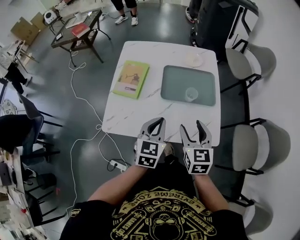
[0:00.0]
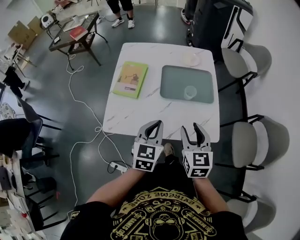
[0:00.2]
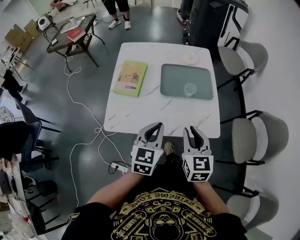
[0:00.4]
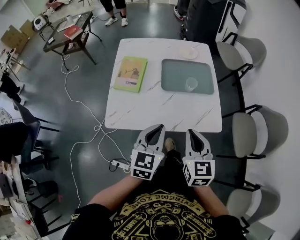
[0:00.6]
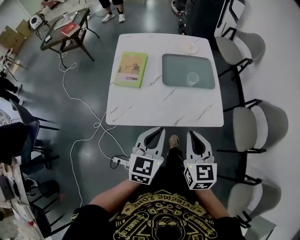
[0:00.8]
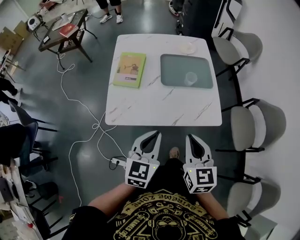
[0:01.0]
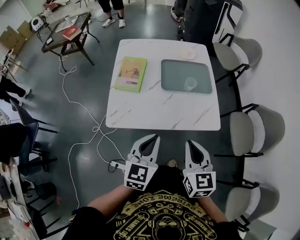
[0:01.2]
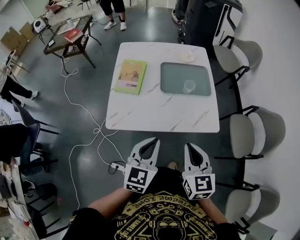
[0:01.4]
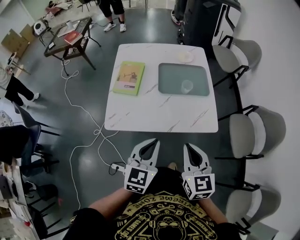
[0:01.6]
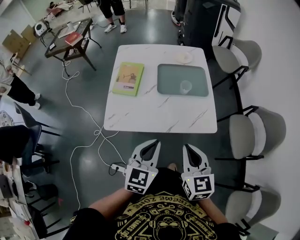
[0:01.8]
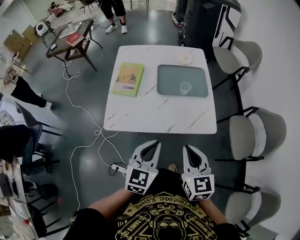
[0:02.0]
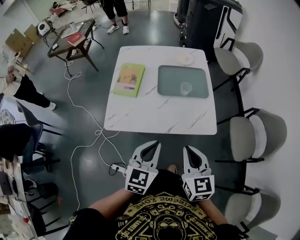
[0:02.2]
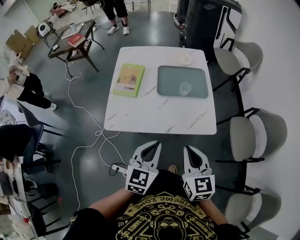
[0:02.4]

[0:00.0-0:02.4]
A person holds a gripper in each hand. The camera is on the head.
0.0 to 1.2 s: The two grippers go approximately 15 cm backward. The right gripper closes up.
1.2 to 2.4 s: The left gripper shifts about 5 cm to the right.

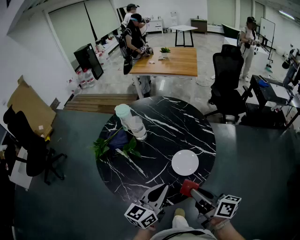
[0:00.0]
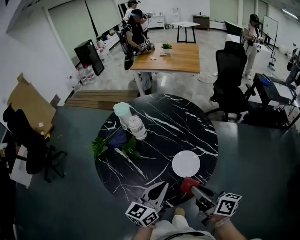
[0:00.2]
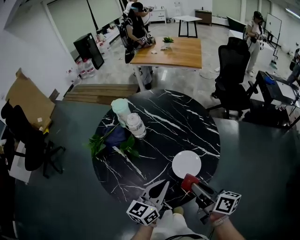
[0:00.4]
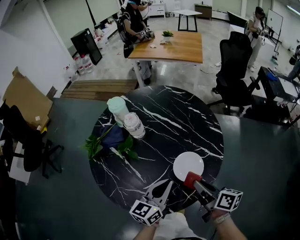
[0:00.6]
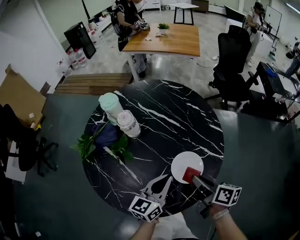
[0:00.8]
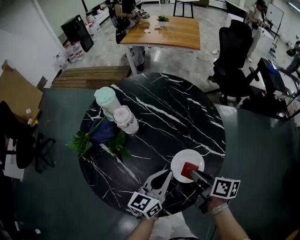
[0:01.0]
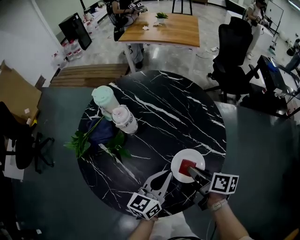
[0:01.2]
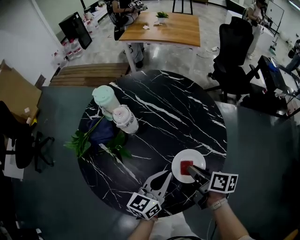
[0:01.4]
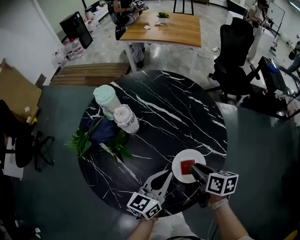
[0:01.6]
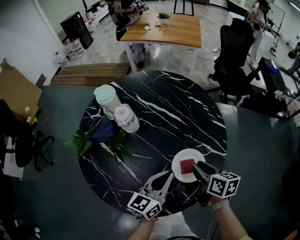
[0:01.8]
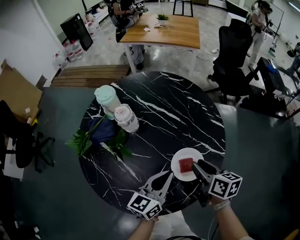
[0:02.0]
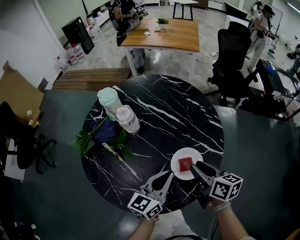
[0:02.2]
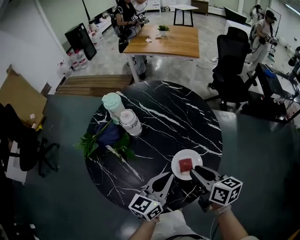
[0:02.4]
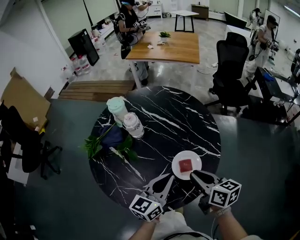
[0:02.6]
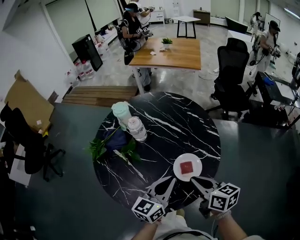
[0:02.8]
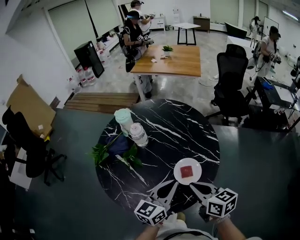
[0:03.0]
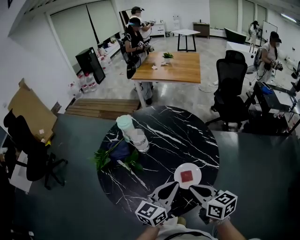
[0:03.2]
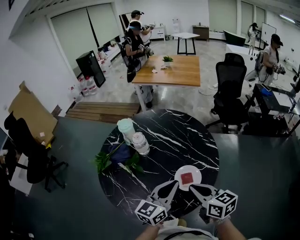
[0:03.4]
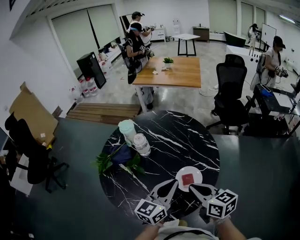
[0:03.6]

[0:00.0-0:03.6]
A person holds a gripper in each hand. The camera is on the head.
0.0 to 1.8 s: Both grippers travel together forward and downward, roughly 20 cm. The right gripper swivels about 30 degrees.
1.8 to 3.6 s: The left gripper heads upward, covering approximately 15 cm. The right gripper travels upward and backward by approximately 15 cm, rotates approximately 30 degrees, and closes its fingers.

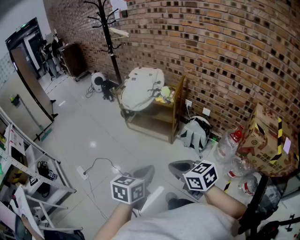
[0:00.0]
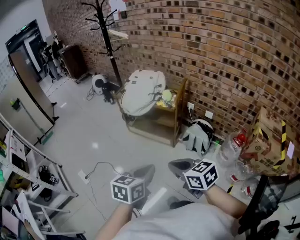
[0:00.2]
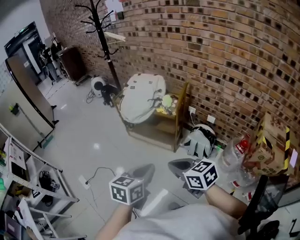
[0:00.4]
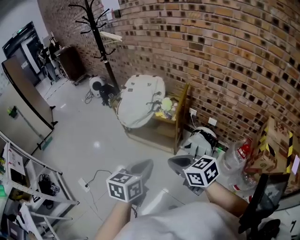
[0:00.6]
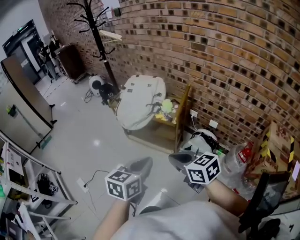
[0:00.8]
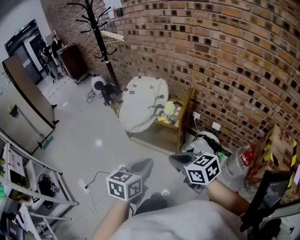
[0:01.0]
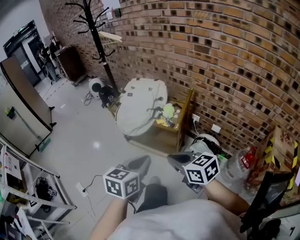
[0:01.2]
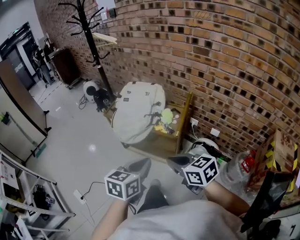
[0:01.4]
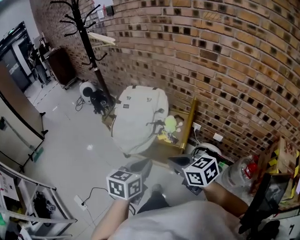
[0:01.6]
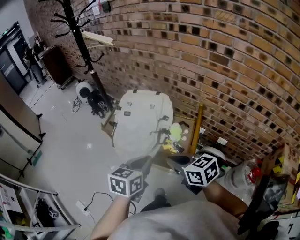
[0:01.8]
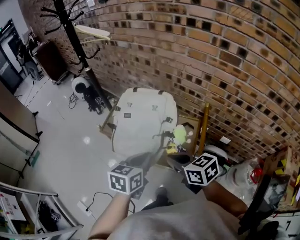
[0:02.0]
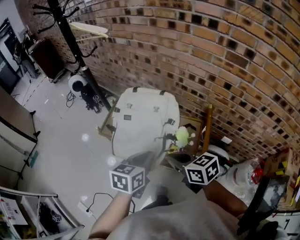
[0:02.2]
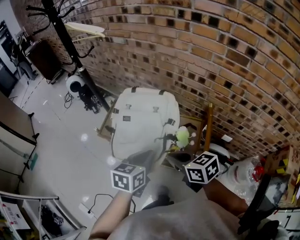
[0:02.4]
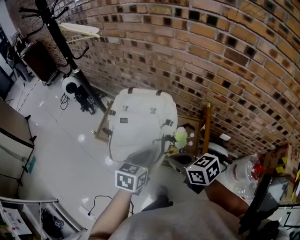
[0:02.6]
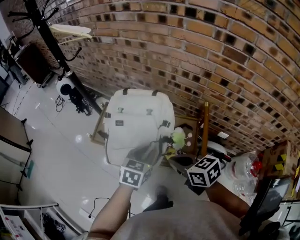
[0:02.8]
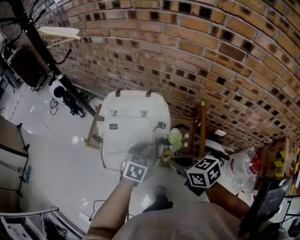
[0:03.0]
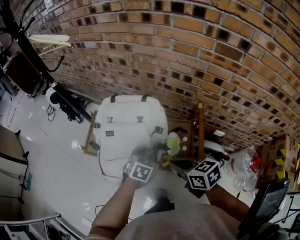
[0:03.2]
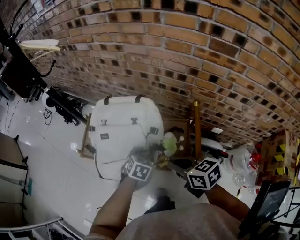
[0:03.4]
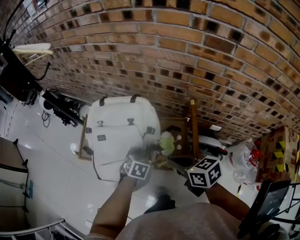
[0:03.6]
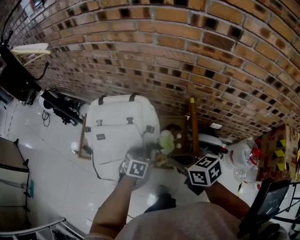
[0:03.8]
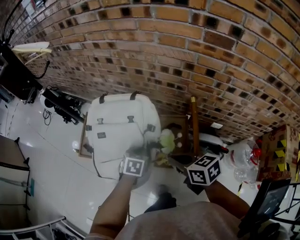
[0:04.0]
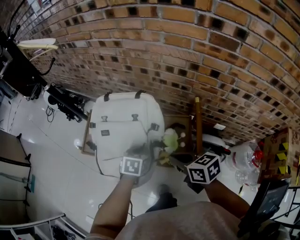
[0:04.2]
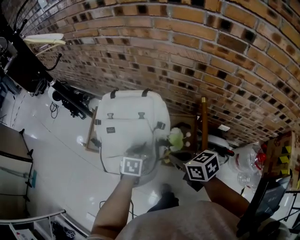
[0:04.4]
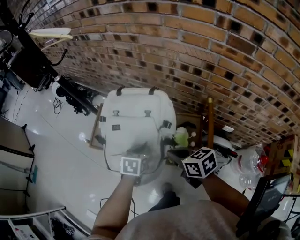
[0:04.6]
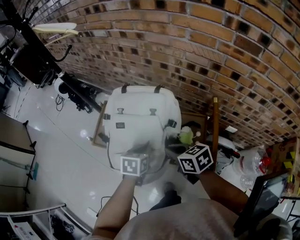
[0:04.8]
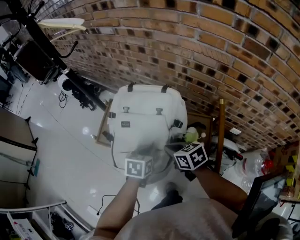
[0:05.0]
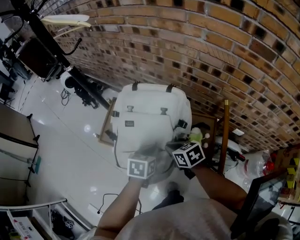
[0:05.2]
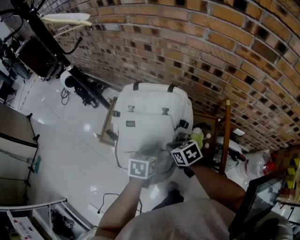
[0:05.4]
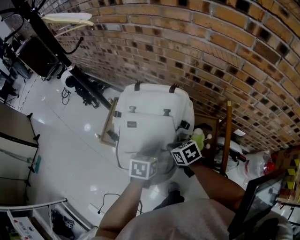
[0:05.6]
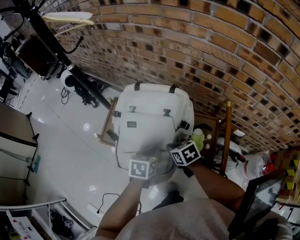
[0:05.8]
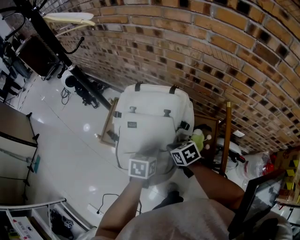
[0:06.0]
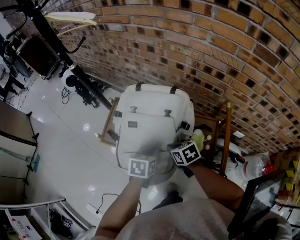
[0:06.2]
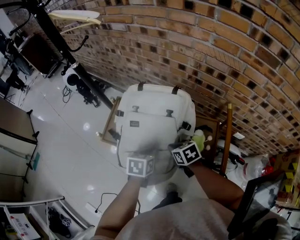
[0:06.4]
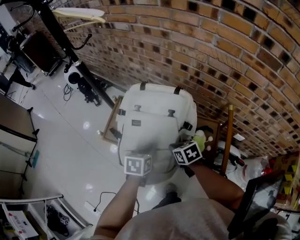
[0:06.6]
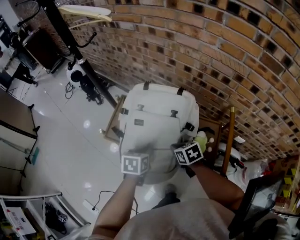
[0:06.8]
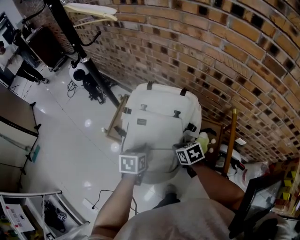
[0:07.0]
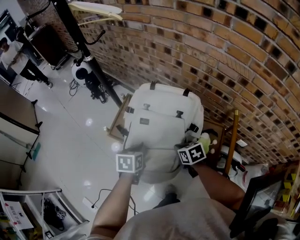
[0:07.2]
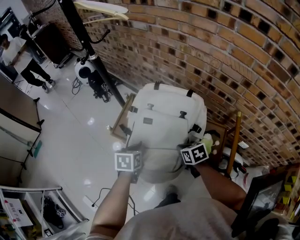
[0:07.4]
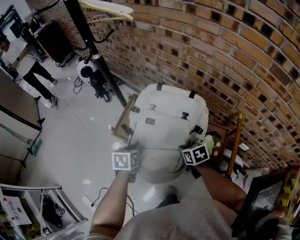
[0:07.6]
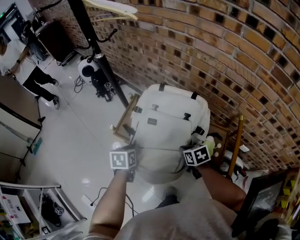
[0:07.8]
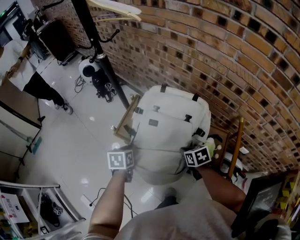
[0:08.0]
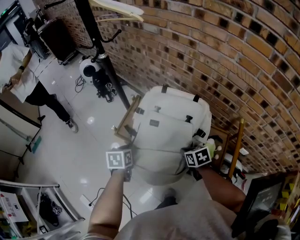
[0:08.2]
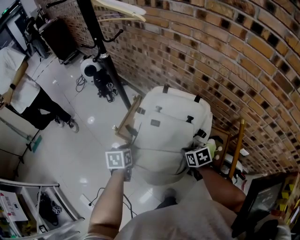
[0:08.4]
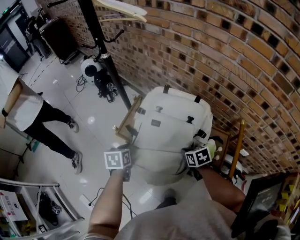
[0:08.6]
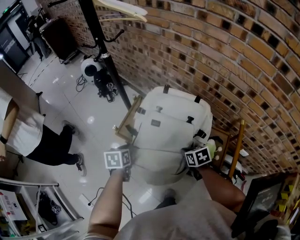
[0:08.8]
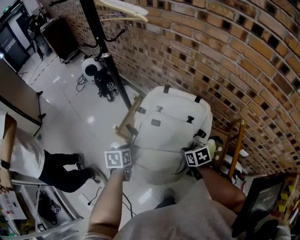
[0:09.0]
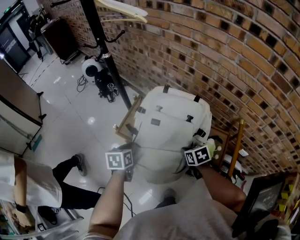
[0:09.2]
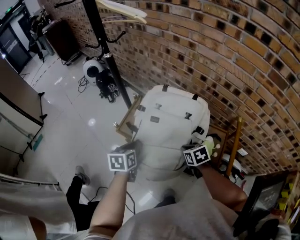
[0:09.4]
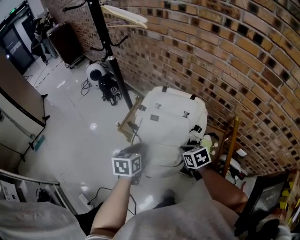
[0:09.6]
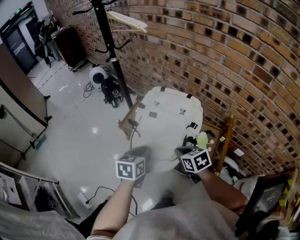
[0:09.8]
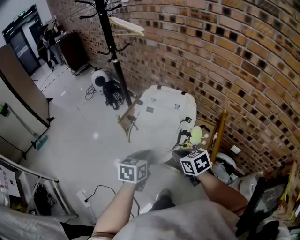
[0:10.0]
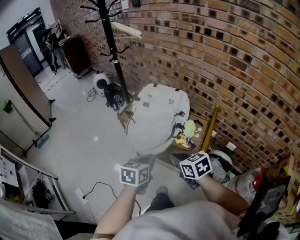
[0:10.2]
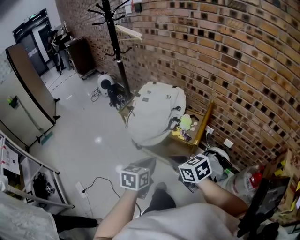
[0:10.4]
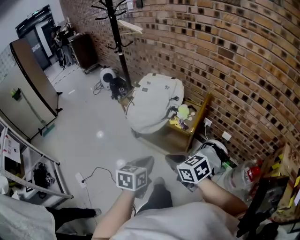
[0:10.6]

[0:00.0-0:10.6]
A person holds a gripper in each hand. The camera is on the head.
0.0 to 1.6 s: The pair of grippers is taken forward, approximately 40 cm.
1.6 to 3.0 s: The right gripper heads forward, covering about 20 cm. Meanwhile the left gripper goes about 30 cm forward and downward, rotates approximately 30 degrees, and opens its fingers.
3.0 to 4.6 s: The right gripper moves roughly 5 cm. The left gripper heads downward, covering roughly 5 cm, and closes its fingers.
4.6 to 6.0 s: The right gripper goes roughly 15 cm downward, to the left and forward.
6.0 to 7.6 s: The left gripper moves to the left, some 15 cm.
7.6 to 9.0 s: The left gripper shifts by roughly 5 cm.
9.0 to 10.6 s: The left gripper heads backward, covering about 50 cm, and changes its angle by some 20 degrees, while the right gripper shifts about 40 cm backward and upward, and changes its angle by roughly 30 degrees.

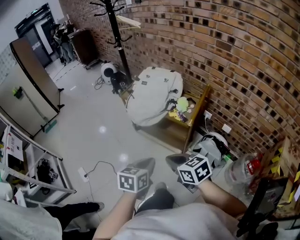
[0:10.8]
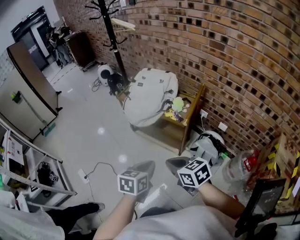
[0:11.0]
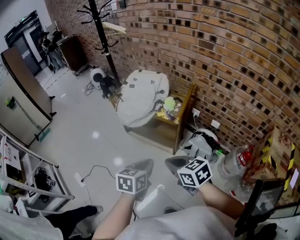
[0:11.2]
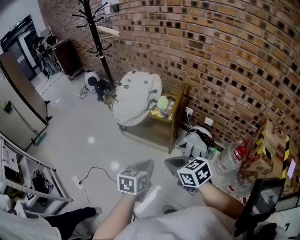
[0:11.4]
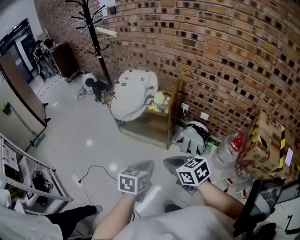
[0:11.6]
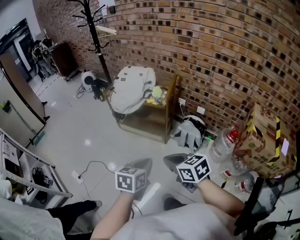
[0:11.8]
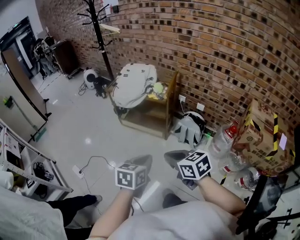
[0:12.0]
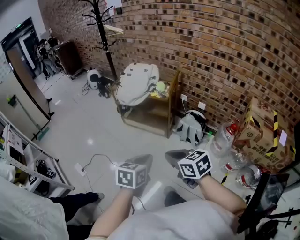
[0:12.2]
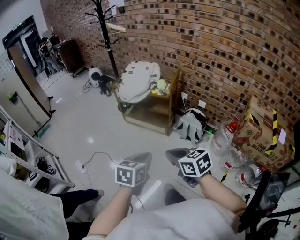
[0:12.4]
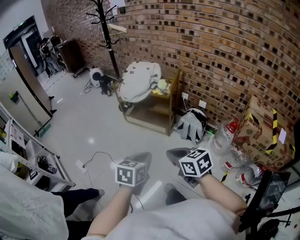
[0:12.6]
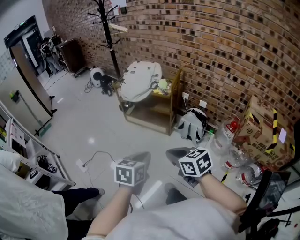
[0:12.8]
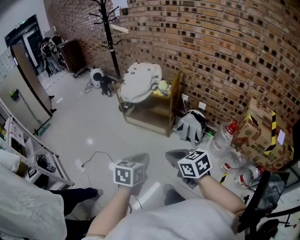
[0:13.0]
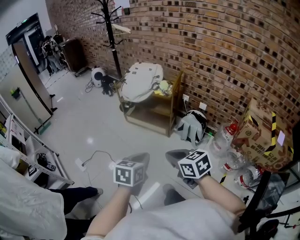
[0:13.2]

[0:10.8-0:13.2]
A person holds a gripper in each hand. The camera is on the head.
10.8 to 12.0 s: Both grippers move backward, about 25 cm.
12.0 to 13.2 s: Both grippers travel together backward, about 5 cm.

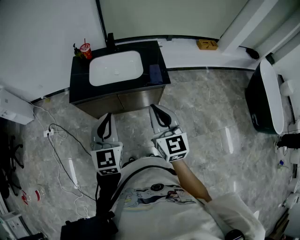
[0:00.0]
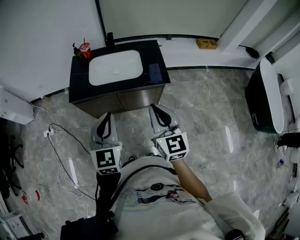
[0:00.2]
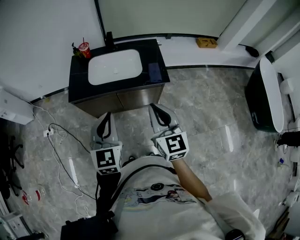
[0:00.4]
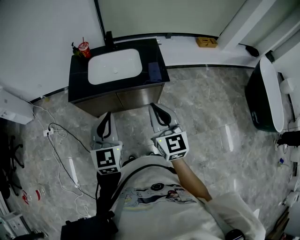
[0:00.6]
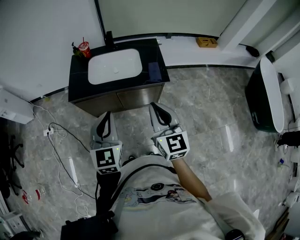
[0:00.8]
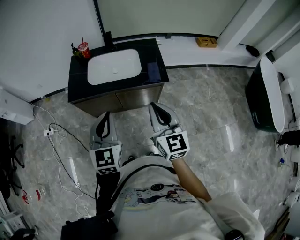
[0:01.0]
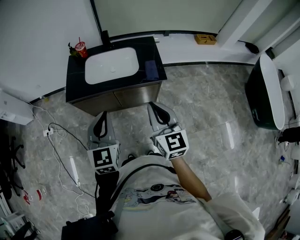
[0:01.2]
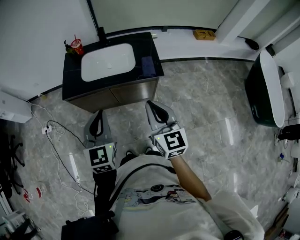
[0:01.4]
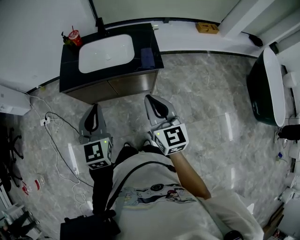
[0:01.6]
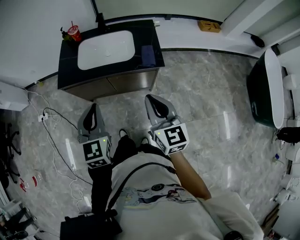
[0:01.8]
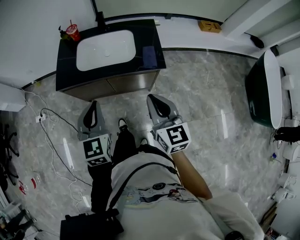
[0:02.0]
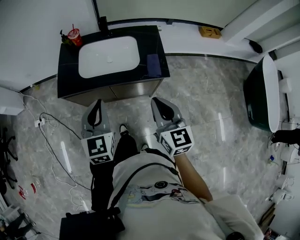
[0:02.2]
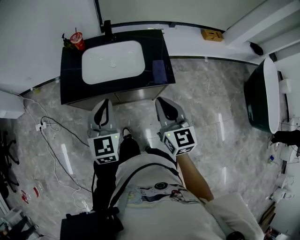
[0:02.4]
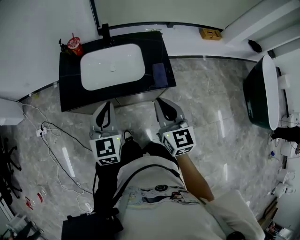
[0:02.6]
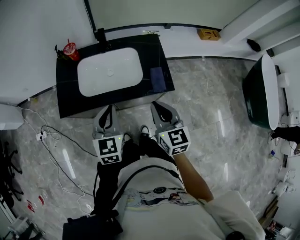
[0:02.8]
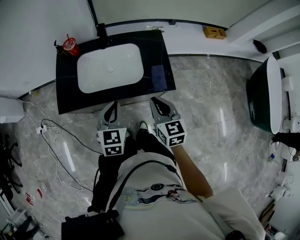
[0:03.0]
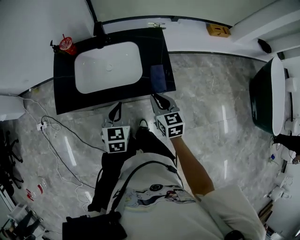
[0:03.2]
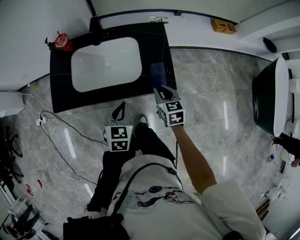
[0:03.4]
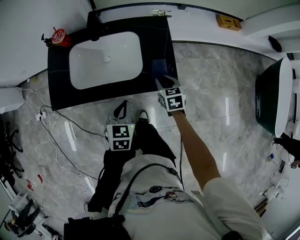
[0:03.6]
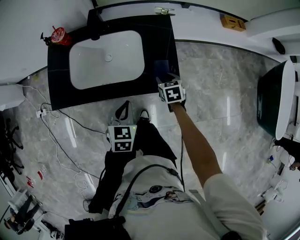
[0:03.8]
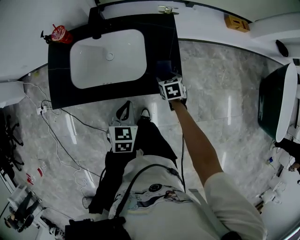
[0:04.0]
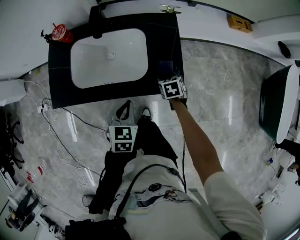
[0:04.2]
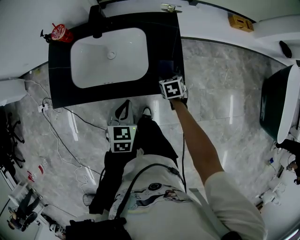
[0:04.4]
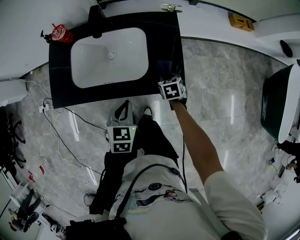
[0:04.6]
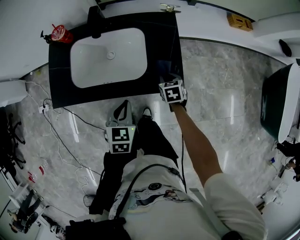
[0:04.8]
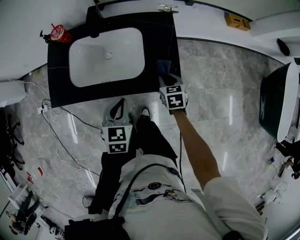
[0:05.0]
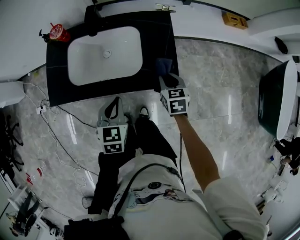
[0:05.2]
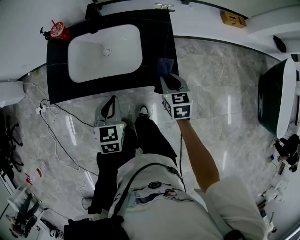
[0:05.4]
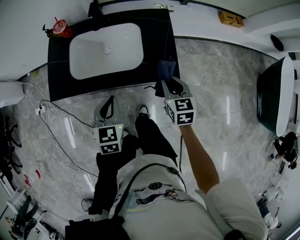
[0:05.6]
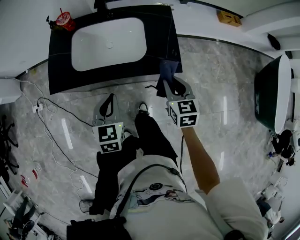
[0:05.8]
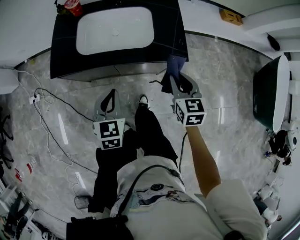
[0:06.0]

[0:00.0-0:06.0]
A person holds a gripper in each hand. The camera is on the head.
0.0 to 1.6 s: The right gripper changes place by roughly 5 cm.
1.6 to 3.0 s: Both grippers travel together forward and downward, roughly 25 cm.
3.0 to 4.4 s: The right gripper goes approximately 30 cm downward and forward, angles its fingers downward, by approximately 40 degrees, and opens its fingers; the left gripper travels downward and to the right by some 15 cm.
4.4 to 6.0 s: The right gripper is displaced upward and backward by approximately 25 cm, tilts its fingers approximately 30 degrees upward, and closes, while the left gripper shifts approximately 15 cm backward and to the left.
